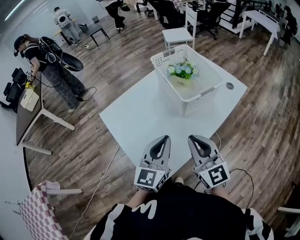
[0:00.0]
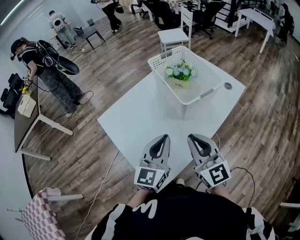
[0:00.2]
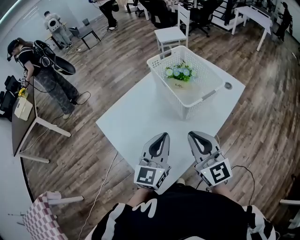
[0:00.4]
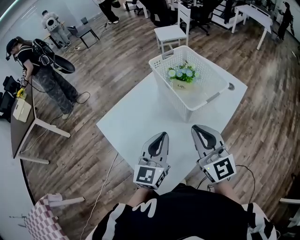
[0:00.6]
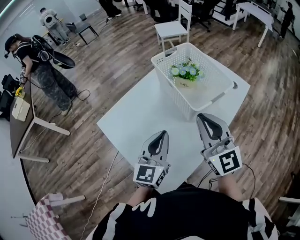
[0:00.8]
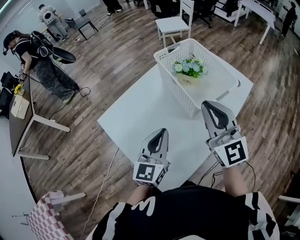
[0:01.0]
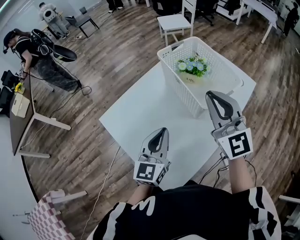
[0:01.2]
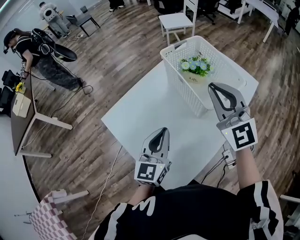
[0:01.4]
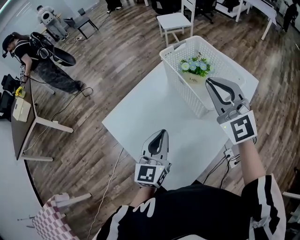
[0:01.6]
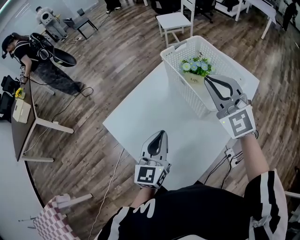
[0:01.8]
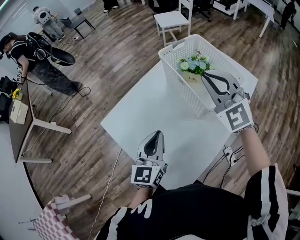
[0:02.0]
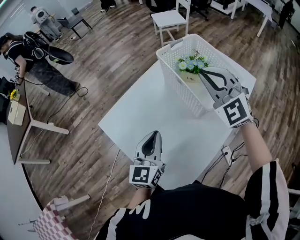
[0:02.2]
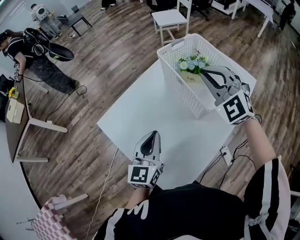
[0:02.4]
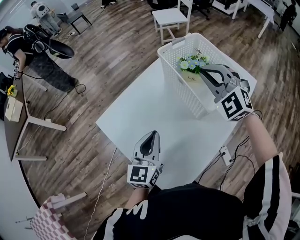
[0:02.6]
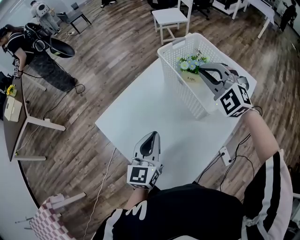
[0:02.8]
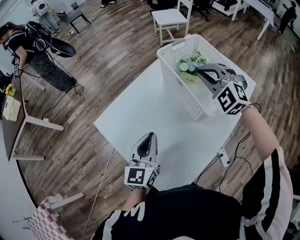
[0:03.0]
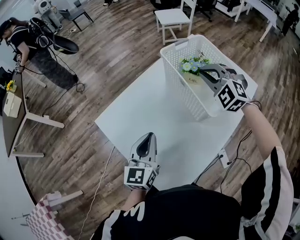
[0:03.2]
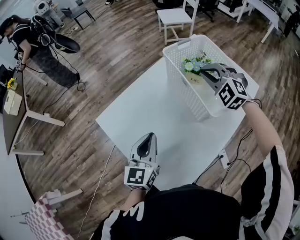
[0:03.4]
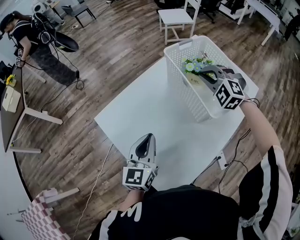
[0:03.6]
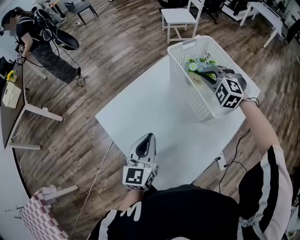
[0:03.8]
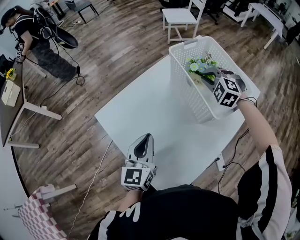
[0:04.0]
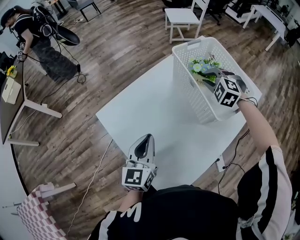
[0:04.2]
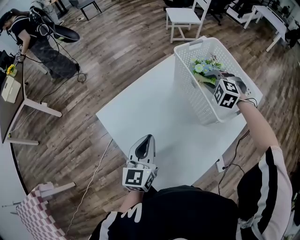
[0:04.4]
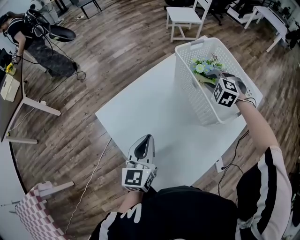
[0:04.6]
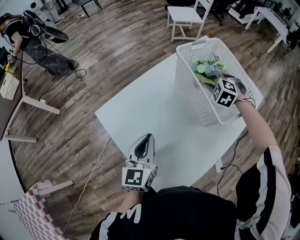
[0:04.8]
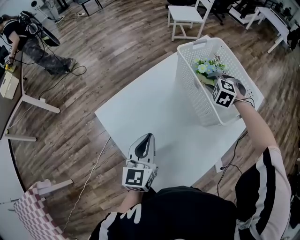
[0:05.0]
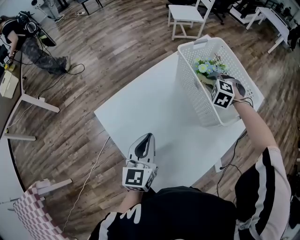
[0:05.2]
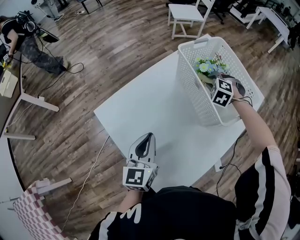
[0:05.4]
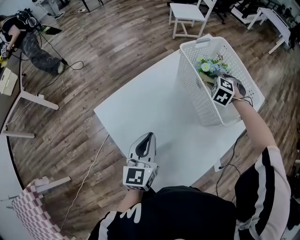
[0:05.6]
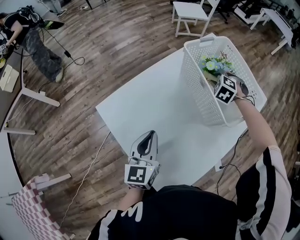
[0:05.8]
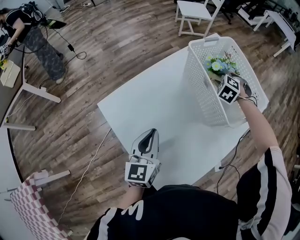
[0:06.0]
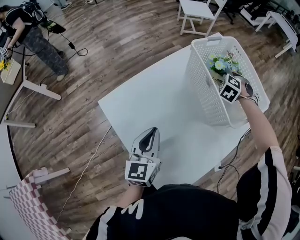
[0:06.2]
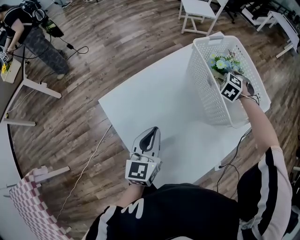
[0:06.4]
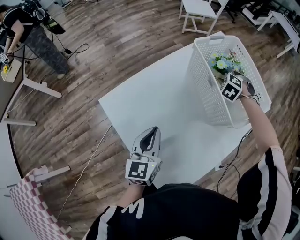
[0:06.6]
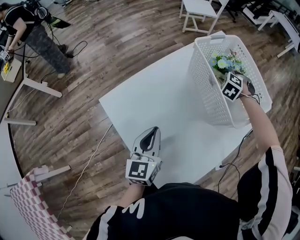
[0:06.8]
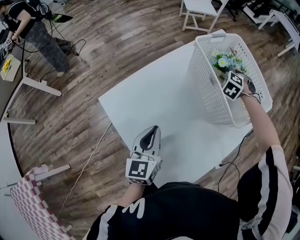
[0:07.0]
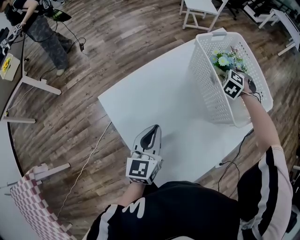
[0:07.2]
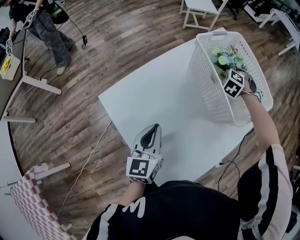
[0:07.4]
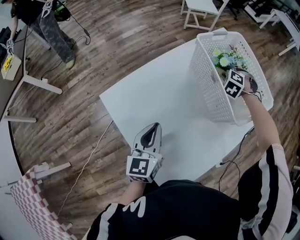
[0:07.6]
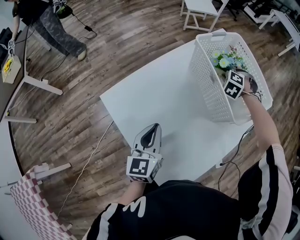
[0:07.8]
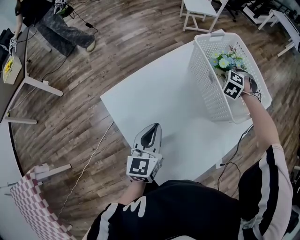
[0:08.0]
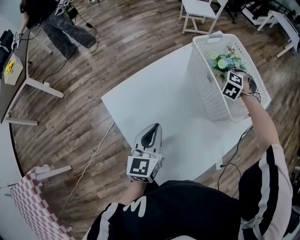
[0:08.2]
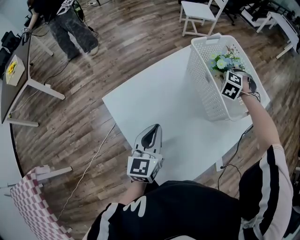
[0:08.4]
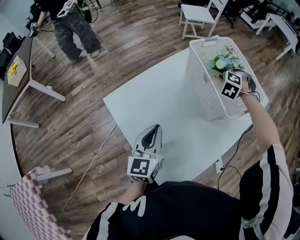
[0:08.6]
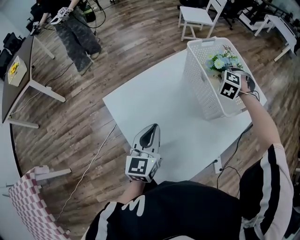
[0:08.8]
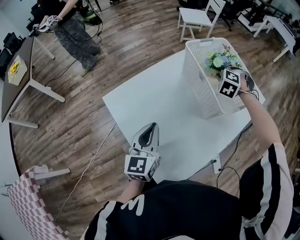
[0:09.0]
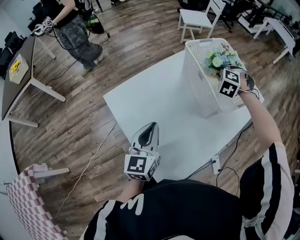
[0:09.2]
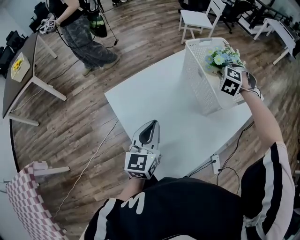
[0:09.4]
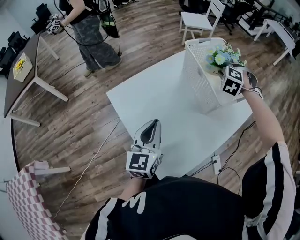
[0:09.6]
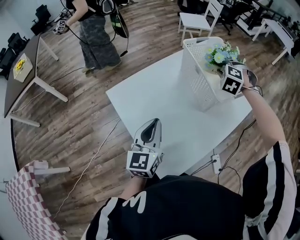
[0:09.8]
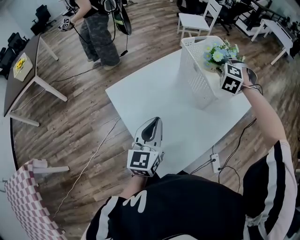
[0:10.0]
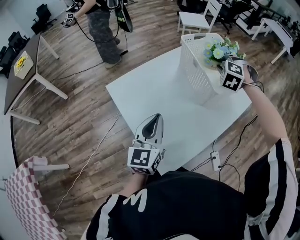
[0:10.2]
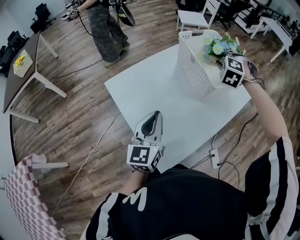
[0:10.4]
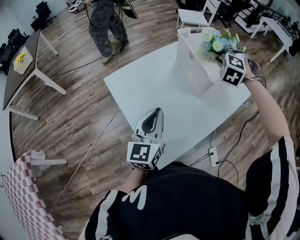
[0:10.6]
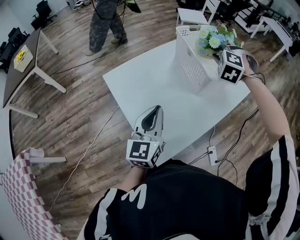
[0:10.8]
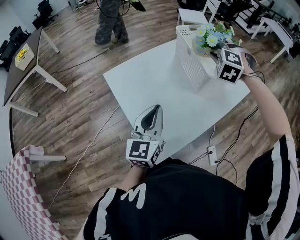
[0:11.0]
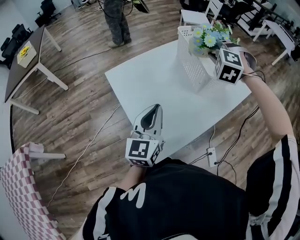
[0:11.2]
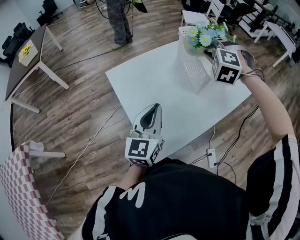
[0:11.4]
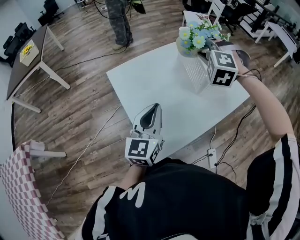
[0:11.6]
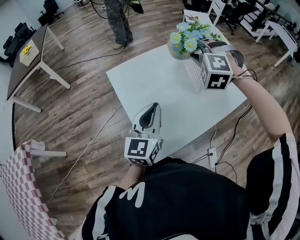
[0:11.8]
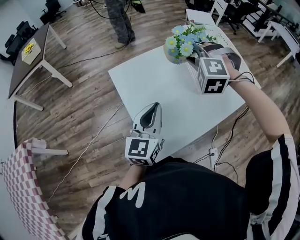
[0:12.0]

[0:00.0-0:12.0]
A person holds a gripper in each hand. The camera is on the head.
0:00.0 to 0:01.6: The left gripper goes approximately 15 cm forward and to the left; the right gripper travels forward and upward by roughly 20 cm, and swivels about 30 degrees.
0:01.6 to 0:03.0: The right gripper travels forward and downward by some 15 cm, and turns by some 40 degrees.
0:03.0 to 0:04.4: The right gripper shifts roughly 15 cm downward, and swivels roughly 30 degrees.
0:04.4 to 0:06.0: The right gripper moves downward, roughly 5 cm.
0:06.0 to 0:07.6: The grippers stay close to where they were, moving slightly.
0:07.6 to 0:09.0: The left gripper ends up about 5 cm from where it was. Meanwhile the right gripper heads upward, covering some 10 cm.
0:09.0 to 0:10.4: The left gripper travels backward by roughly 5 cm, while the right gripper moves upward and backward, roughly 10 cm.
0:10.4 to 0:12.0: The right gripper is displaced to the left and backward by approximately 15 cm, and rotates roughly 30 degrees.

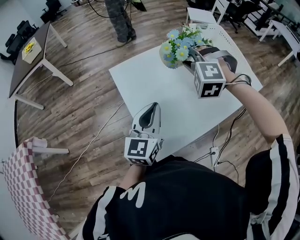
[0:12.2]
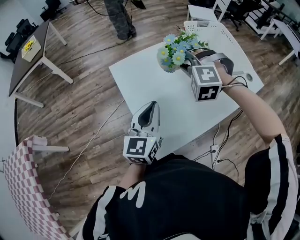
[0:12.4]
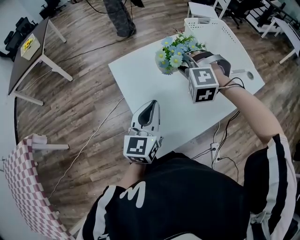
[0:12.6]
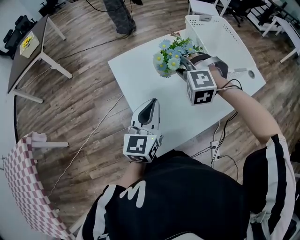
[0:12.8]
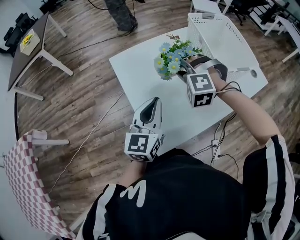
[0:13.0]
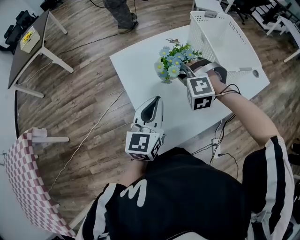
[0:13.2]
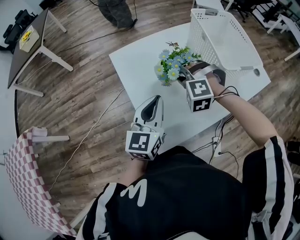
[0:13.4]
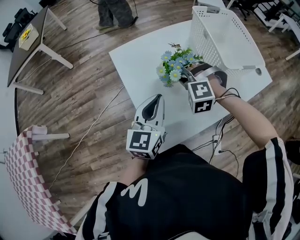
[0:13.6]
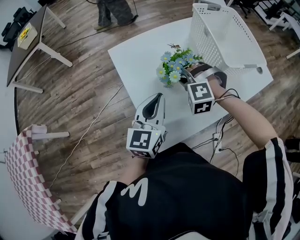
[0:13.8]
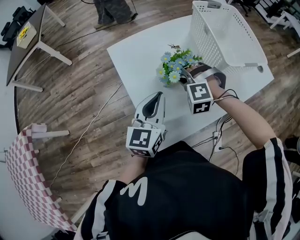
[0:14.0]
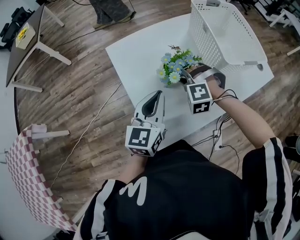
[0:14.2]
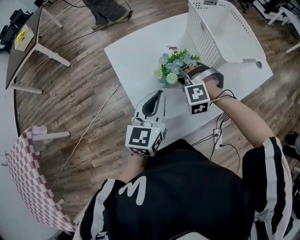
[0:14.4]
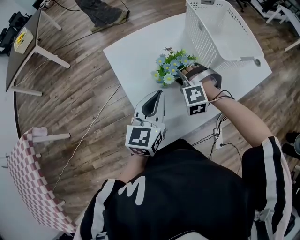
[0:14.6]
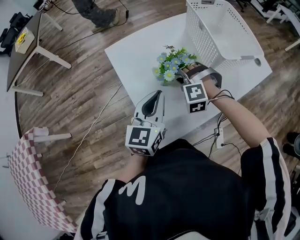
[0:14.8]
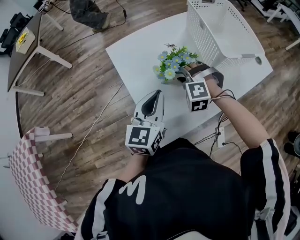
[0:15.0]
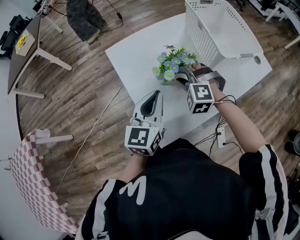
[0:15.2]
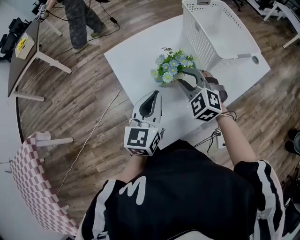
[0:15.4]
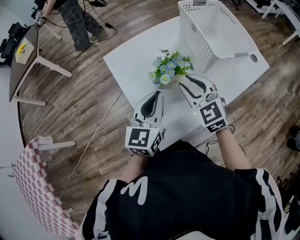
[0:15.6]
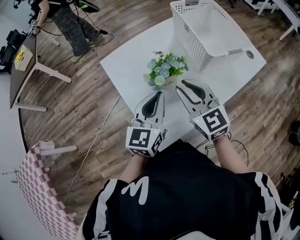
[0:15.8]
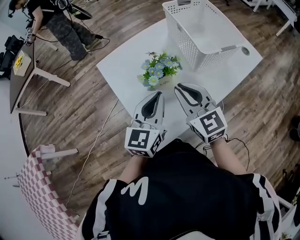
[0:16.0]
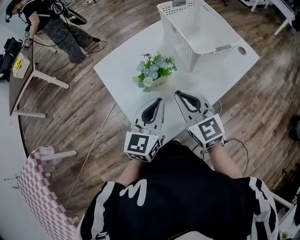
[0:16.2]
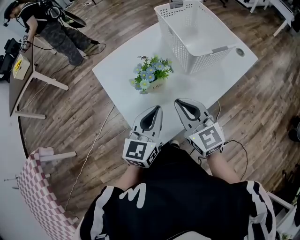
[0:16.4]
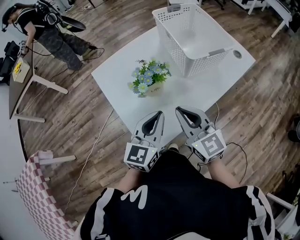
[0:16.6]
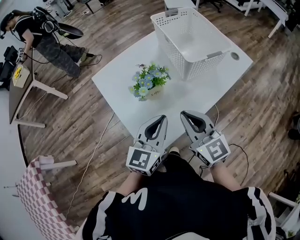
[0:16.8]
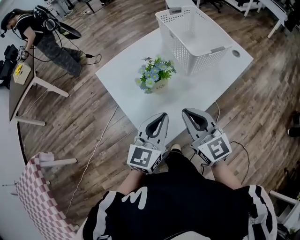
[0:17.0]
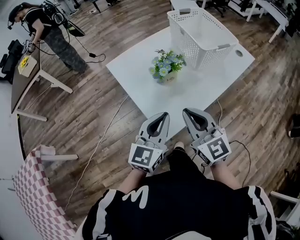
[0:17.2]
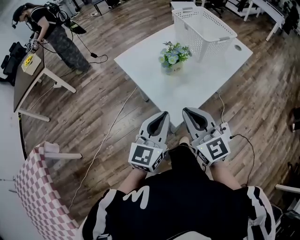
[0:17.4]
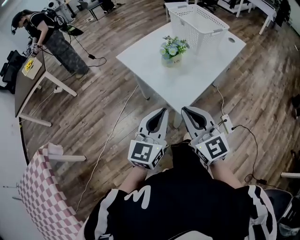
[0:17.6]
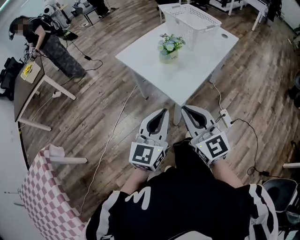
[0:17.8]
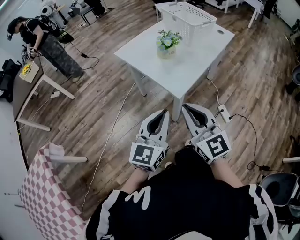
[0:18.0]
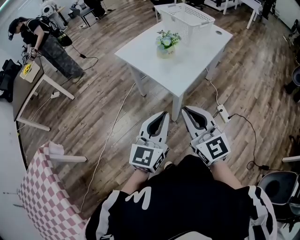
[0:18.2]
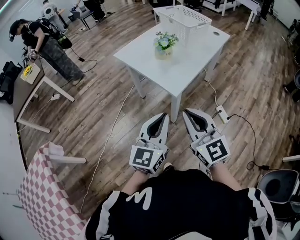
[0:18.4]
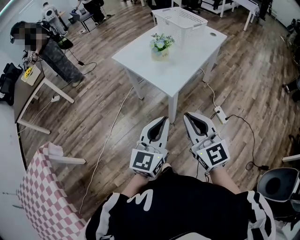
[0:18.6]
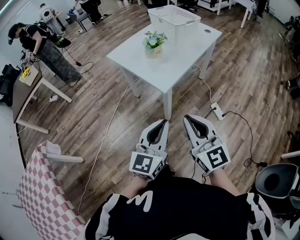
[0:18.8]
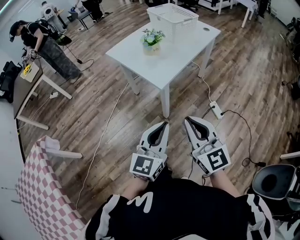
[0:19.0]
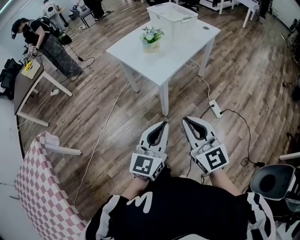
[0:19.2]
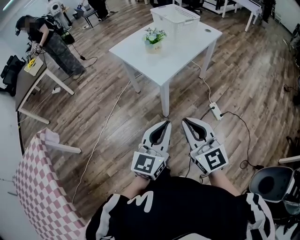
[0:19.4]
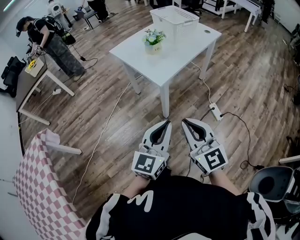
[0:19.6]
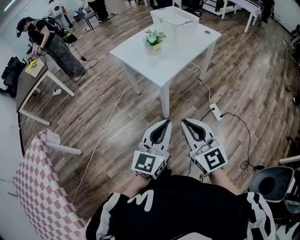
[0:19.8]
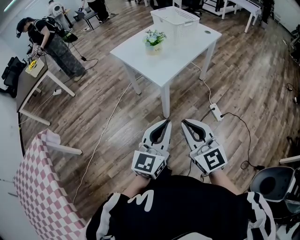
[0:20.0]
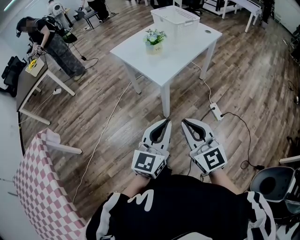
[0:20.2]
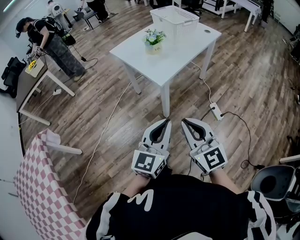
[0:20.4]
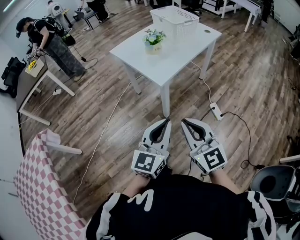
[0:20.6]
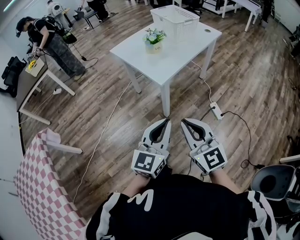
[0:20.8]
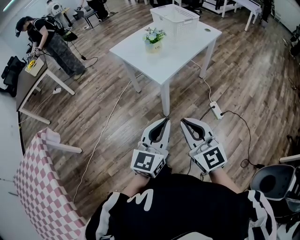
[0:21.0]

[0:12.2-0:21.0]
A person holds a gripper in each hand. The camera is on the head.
0:12.2 to 0:13.6: The right gripper heads downward, covering approximately 15 cm.
0:13.6 to 0:15.2: The grippers move only a little.
0:15.2 to 0:16.6: The right gripper heads backward, upward and to the right, covering about 20 cm, twists approximately 70 degrees clockwise, seen from behind, and closes up, while the left gripper heads to the right and backward, covering roughly 10 cm.
0:16.6 to 0:18.0: The grippers both shift backward and to the left by roughly 35 cm.
0:18.0 to 0:19.6: Both grippers move backward and to the right, about 20 cm.
0:19.6 to 0:21.0: Neither gripper changes place.

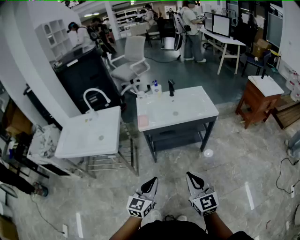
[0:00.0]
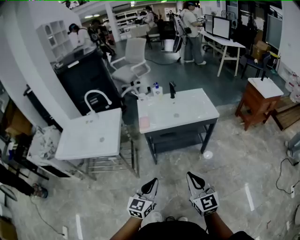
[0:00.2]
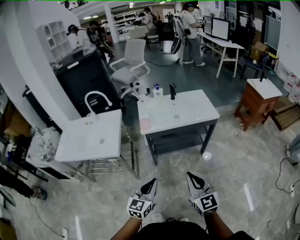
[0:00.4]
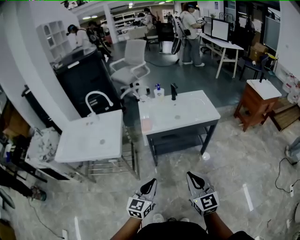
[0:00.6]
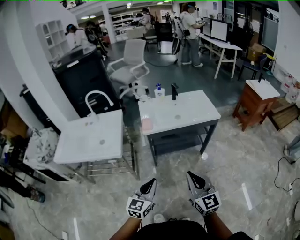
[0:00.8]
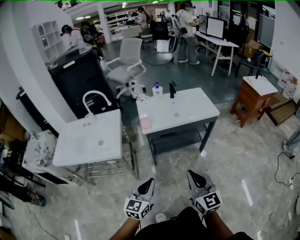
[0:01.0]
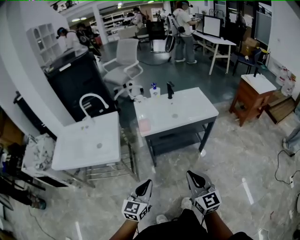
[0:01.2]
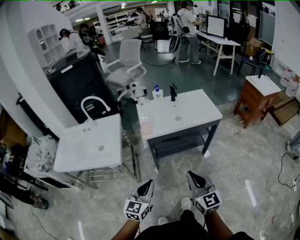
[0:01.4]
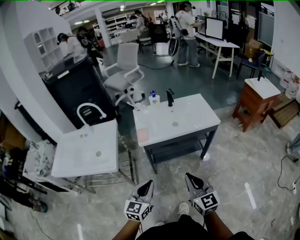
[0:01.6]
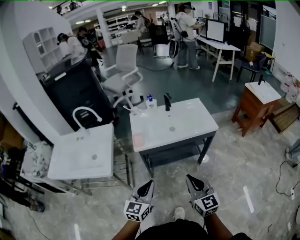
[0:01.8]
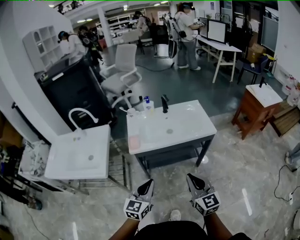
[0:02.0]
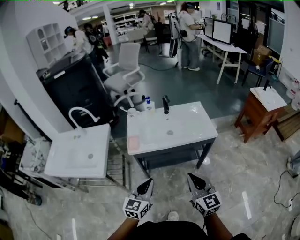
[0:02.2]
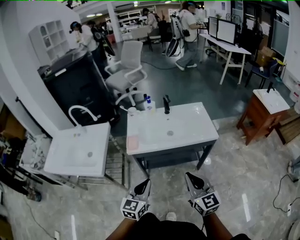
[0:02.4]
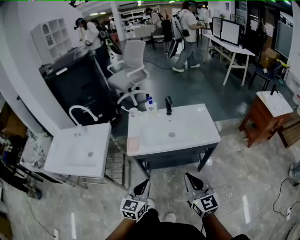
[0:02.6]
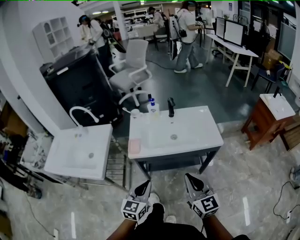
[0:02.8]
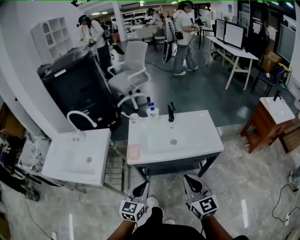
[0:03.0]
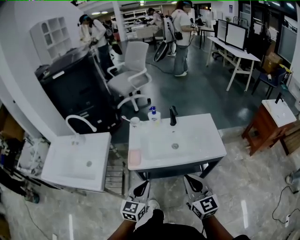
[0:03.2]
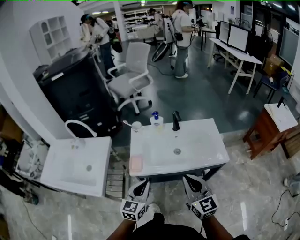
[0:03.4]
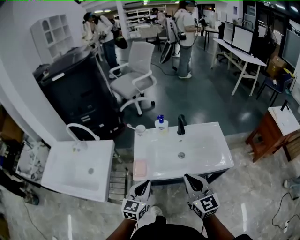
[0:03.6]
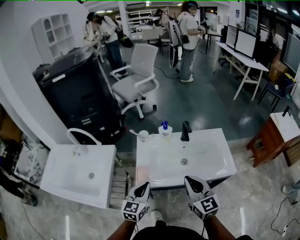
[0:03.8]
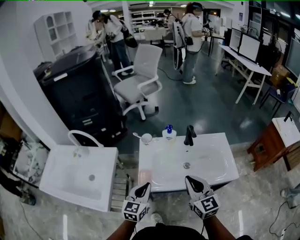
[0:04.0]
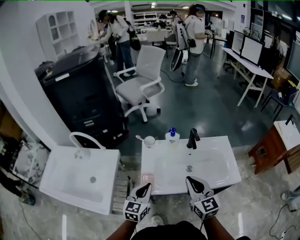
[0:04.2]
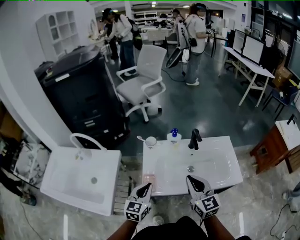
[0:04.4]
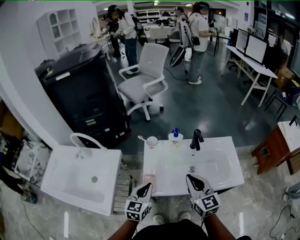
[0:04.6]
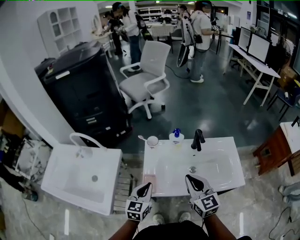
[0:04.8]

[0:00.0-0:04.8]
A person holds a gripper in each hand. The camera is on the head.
0:00.0 to 0:01.6: The right gripper moves forward, some 10 cm. The left gripper is displaced forward and to the left by some 10 cm.
0:01.6 to 0:03.2: The two grippers go about 20 cm forward.
0:03.2 to 0:04.8: The grippers both shift forward and to the left by about 20 cm.
